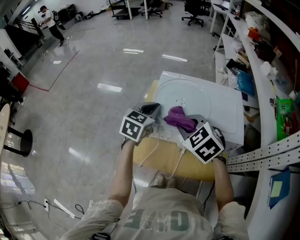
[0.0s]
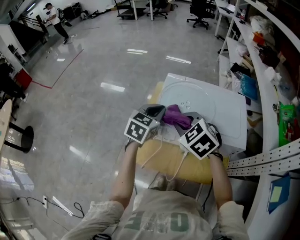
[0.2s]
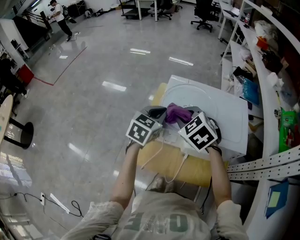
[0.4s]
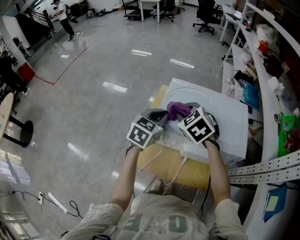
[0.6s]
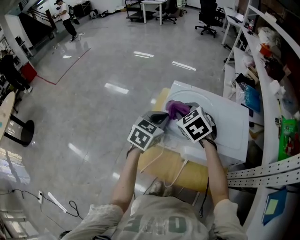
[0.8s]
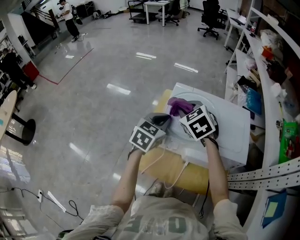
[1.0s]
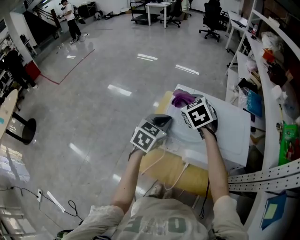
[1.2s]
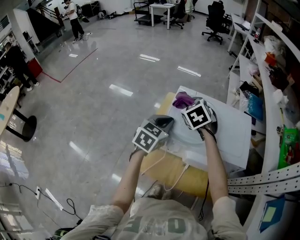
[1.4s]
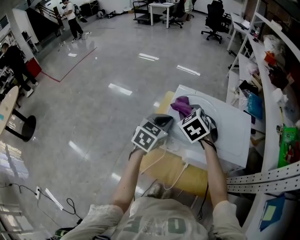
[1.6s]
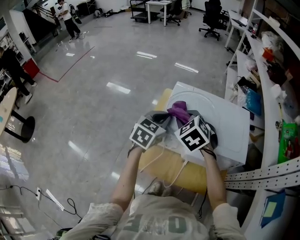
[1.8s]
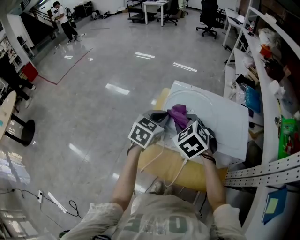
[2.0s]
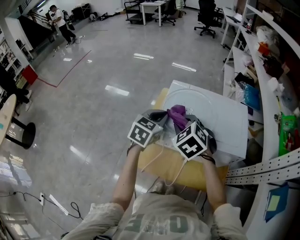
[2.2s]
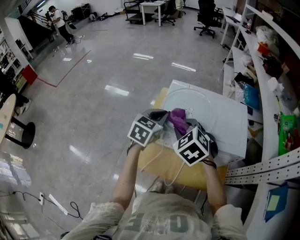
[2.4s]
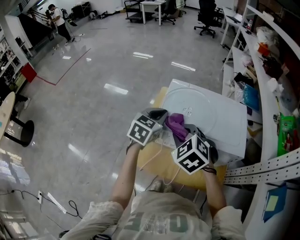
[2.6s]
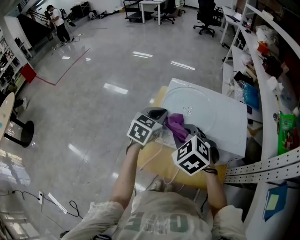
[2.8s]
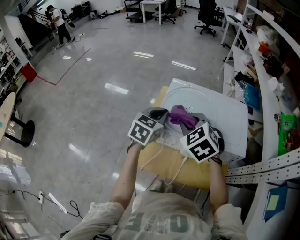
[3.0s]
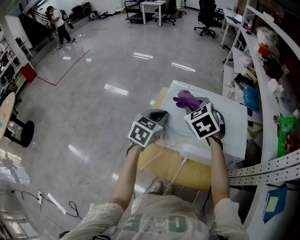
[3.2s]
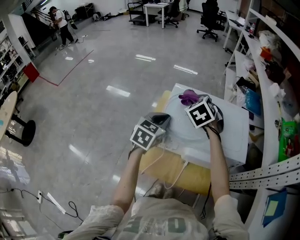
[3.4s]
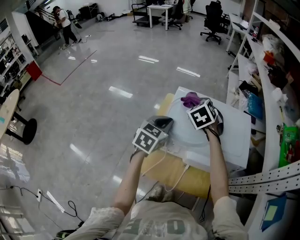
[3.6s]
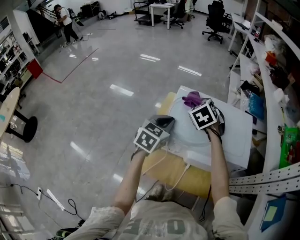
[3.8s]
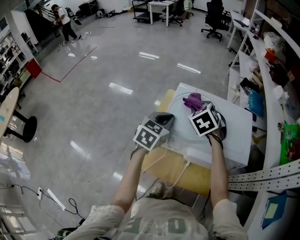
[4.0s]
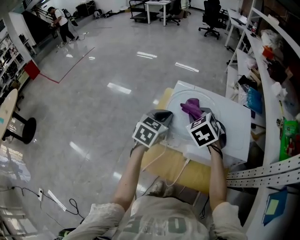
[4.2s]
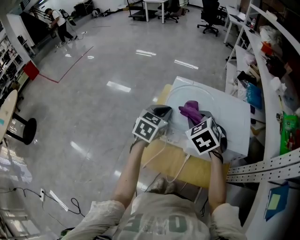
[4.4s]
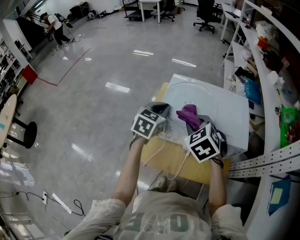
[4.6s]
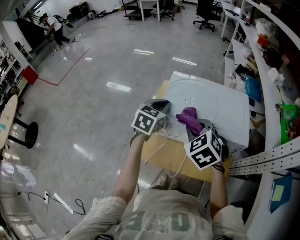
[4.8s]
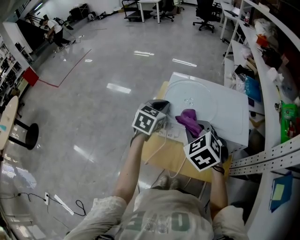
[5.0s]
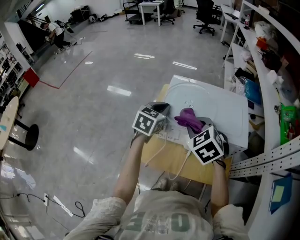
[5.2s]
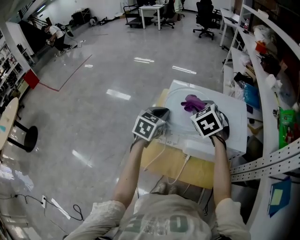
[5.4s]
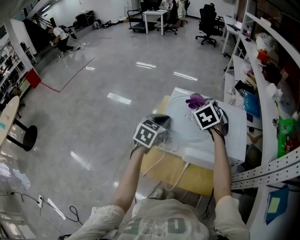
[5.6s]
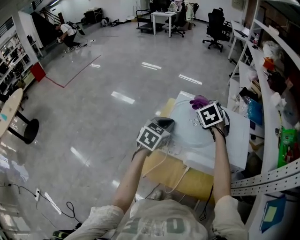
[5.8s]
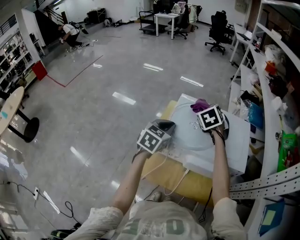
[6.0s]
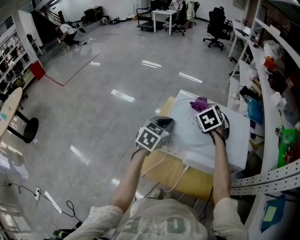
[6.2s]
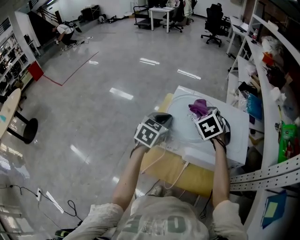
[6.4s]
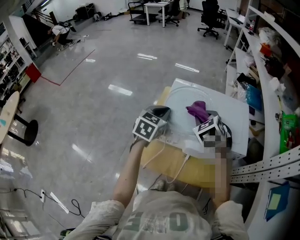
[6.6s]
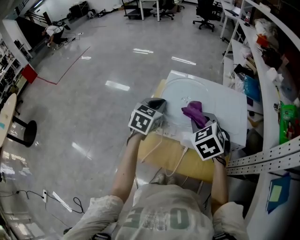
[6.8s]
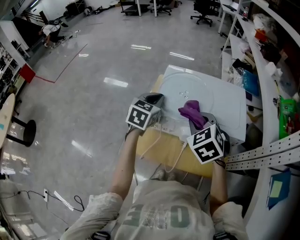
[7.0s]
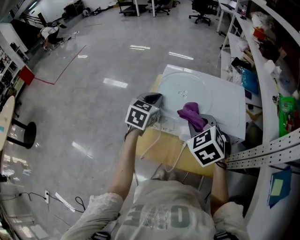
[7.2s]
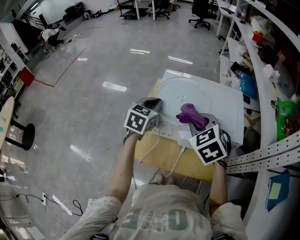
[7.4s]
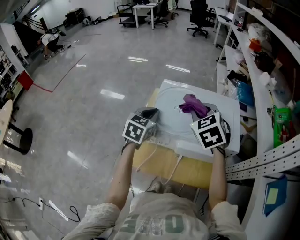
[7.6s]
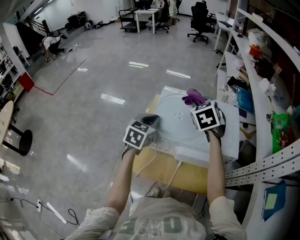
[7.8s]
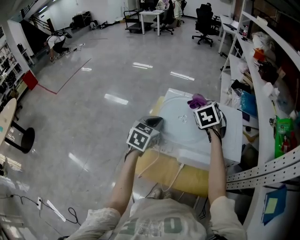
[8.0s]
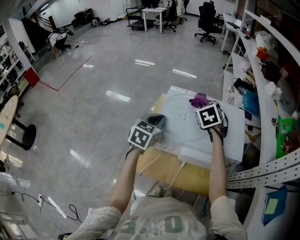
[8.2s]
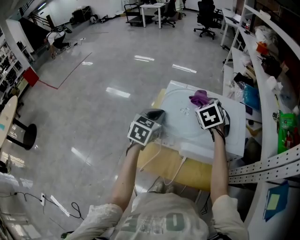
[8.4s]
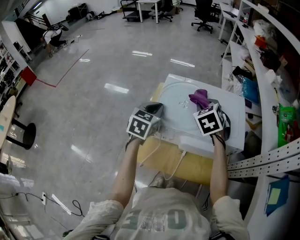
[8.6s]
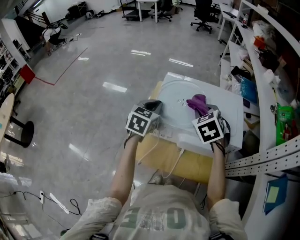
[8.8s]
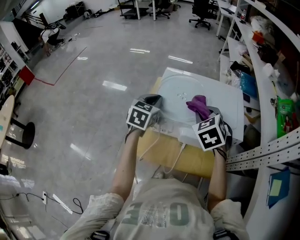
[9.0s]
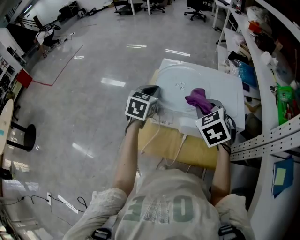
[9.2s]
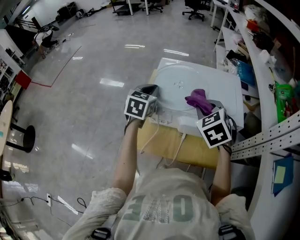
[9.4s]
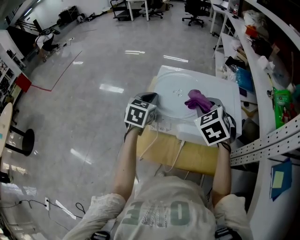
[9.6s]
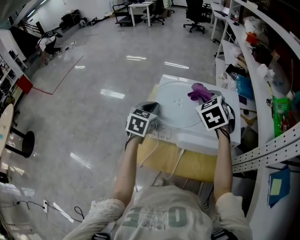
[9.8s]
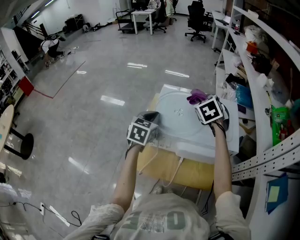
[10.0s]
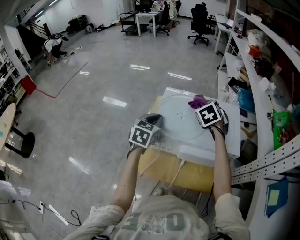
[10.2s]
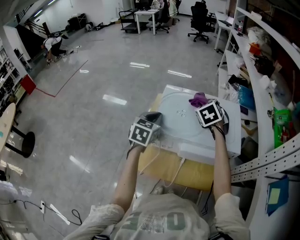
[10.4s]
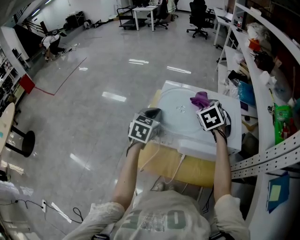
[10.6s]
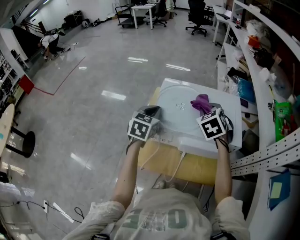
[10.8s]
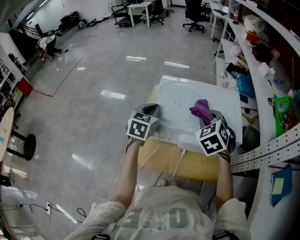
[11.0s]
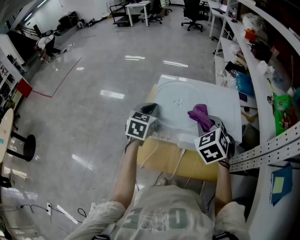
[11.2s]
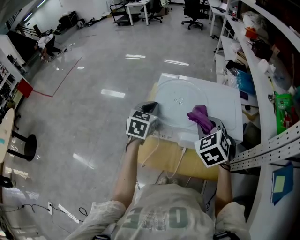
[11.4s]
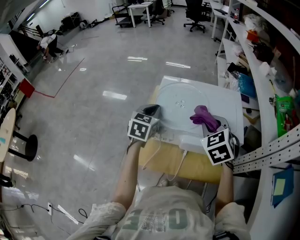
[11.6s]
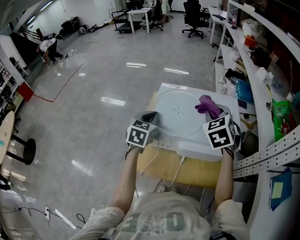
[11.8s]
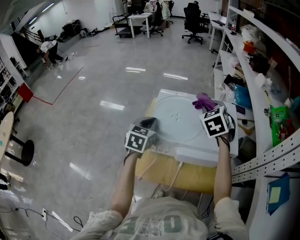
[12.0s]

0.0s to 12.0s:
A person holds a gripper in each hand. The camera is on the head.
0.0s to 1.6s: The right gripper travels forward by about 10 cm.
1.6s to 3.0s: The right gripper shifts approximately 10 cm backward.
3.0s to 4.4s: The right gripper moves approximately 15 cm forward and comes back.
4.4s to 6.0s: The right gripper heads forward, covering approximately 15 cm.
6.0s to 7.6s: The right gripper travels backward and upward by approximately 15 cm.
7.6s to 9.0s: The right gripper reaches roughly 10 cm forward, then returns.
9.0s to 10.4s: The right gripper moves forward, about 10 cm.
10.4s to 12.0s: The right gripper goes approximately 5 cm upward, and reaches about 15 cm backward, then returns.

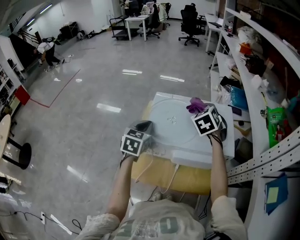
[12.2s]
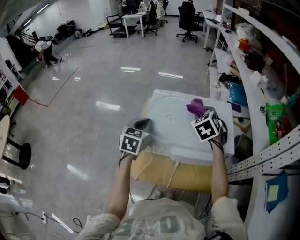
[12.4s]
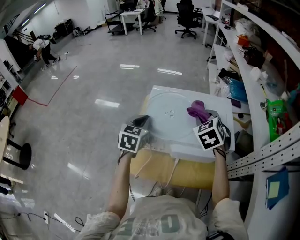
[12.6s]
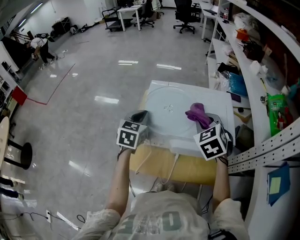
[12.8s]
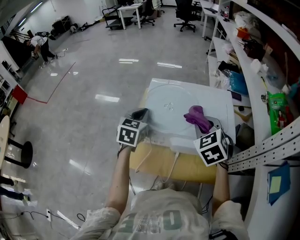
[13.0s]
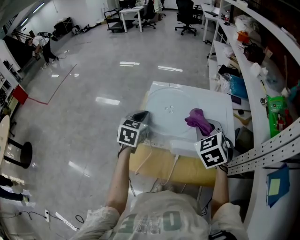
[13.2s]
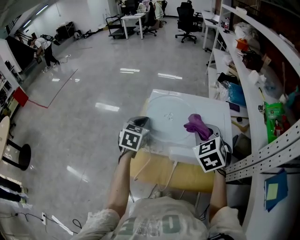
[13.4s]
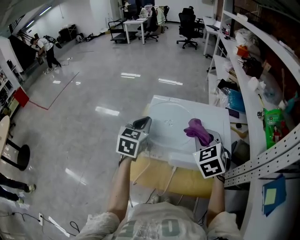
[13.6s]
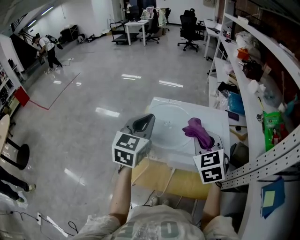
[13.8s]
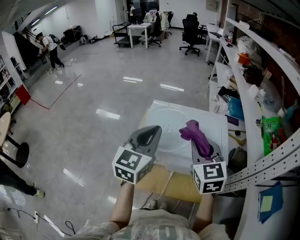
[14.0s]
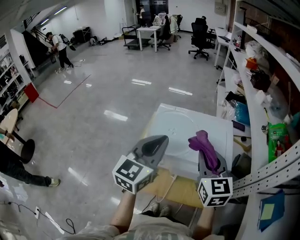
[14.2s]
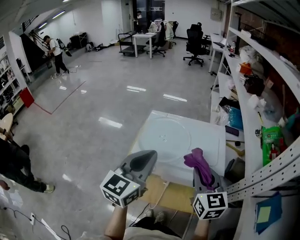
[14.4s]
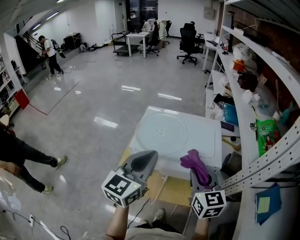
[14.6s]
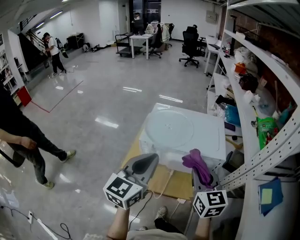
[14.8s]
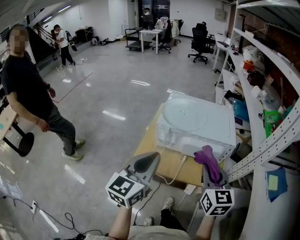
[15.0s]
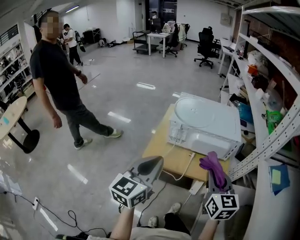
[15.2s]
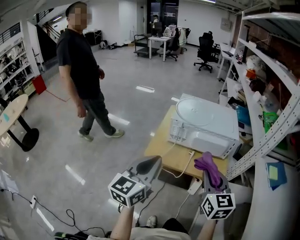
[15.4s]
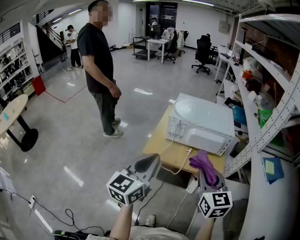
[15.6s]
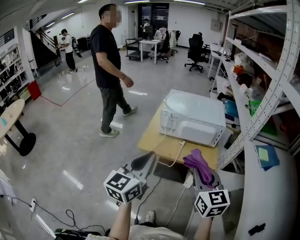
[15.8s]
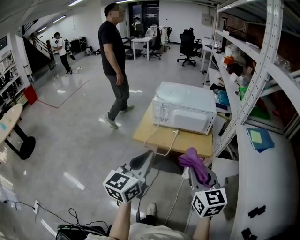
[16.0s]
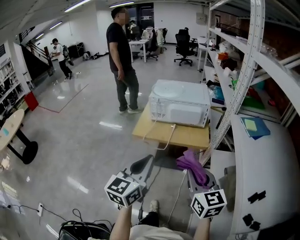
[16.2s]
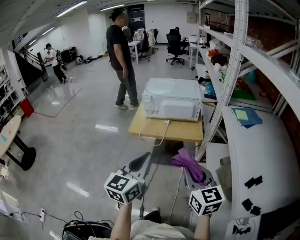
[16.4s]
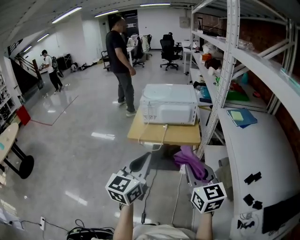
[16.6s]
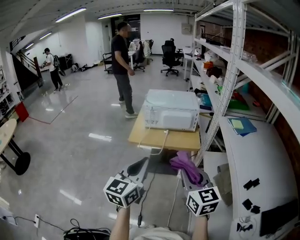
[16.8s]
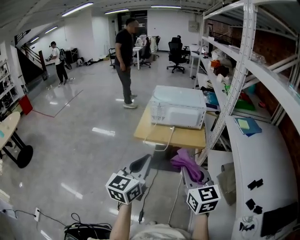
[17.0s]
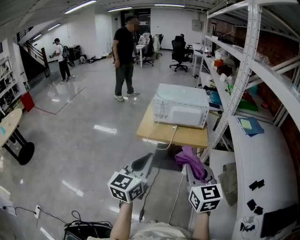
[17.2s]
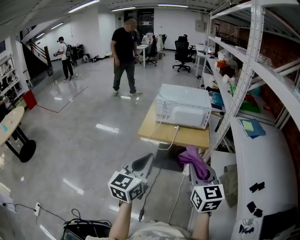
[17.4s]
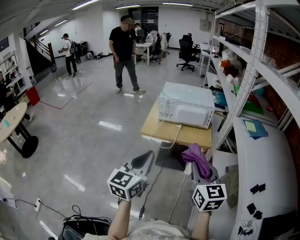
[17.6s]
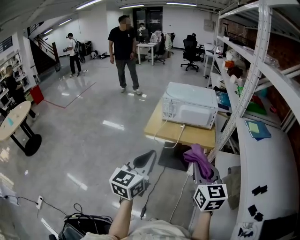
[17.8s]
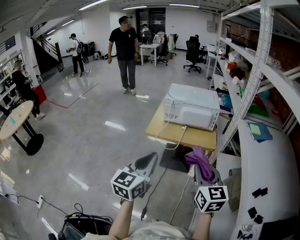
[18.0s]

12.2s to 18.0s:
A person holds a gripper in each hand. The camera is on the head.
12.2s to 13.6s: The right gripper is displaced backward by approximately 15 cm; the left gripper moves upward, about 5 cm.
13.6s to 15.0s: Both grippers travel together backward, approximately 25 cm. The left gripper changes its angle by some 20 degrees. The right gripper swivels approximately 30 degrees.
15.0s to 16.6s: Both grippers travel together backward, about 35 cm.
16.6s to 18.0s: The left gripper moves to the left, approximately 5 cm.

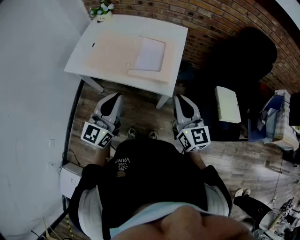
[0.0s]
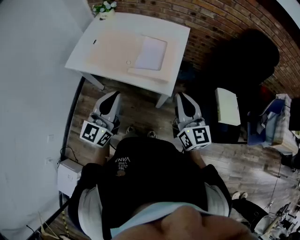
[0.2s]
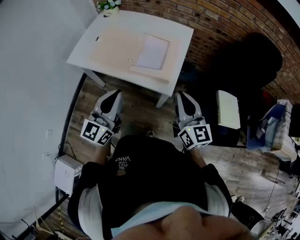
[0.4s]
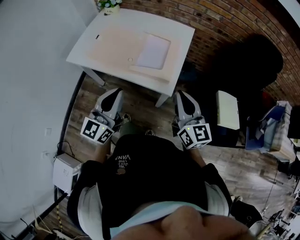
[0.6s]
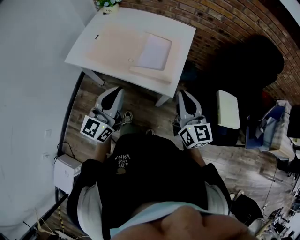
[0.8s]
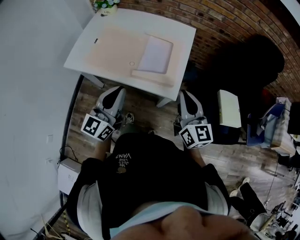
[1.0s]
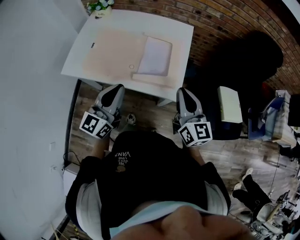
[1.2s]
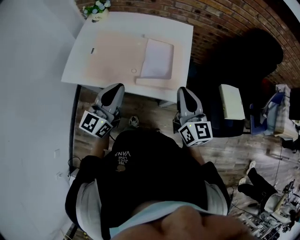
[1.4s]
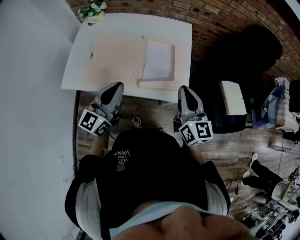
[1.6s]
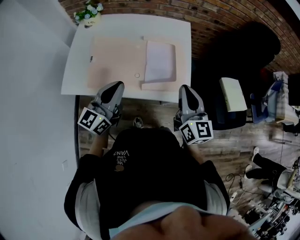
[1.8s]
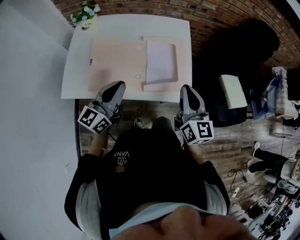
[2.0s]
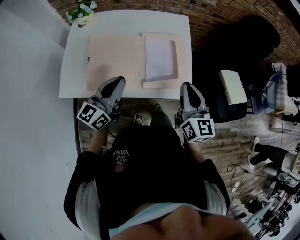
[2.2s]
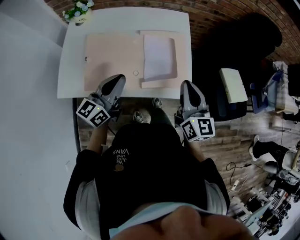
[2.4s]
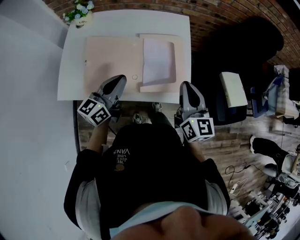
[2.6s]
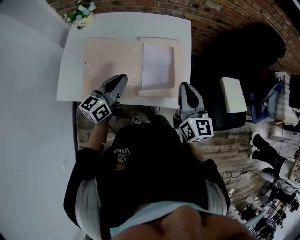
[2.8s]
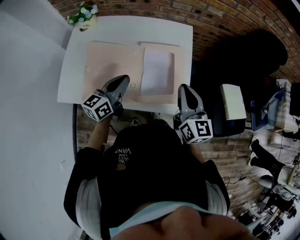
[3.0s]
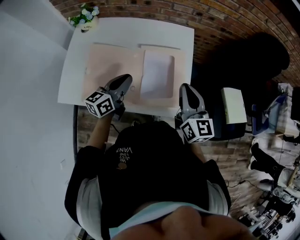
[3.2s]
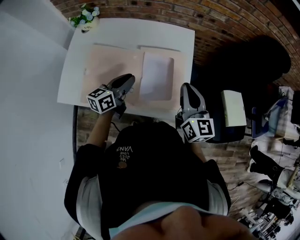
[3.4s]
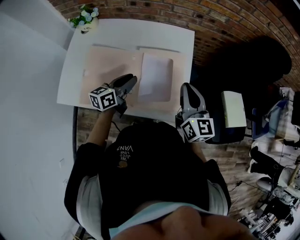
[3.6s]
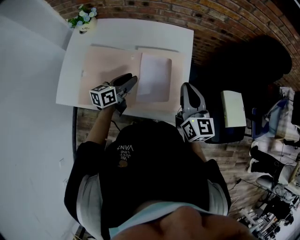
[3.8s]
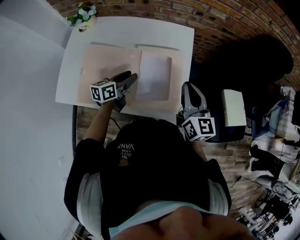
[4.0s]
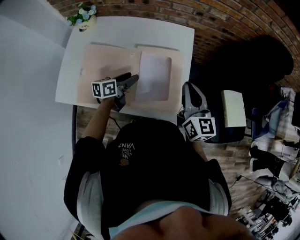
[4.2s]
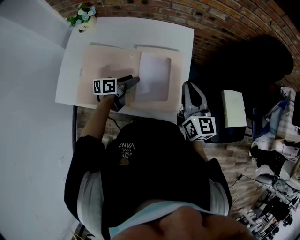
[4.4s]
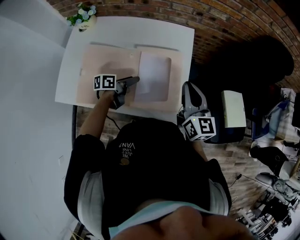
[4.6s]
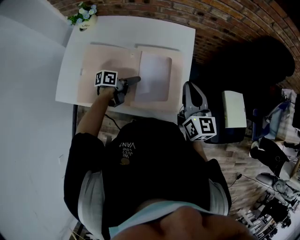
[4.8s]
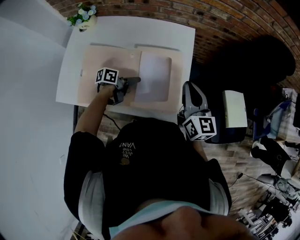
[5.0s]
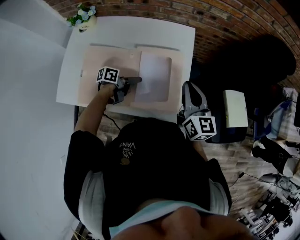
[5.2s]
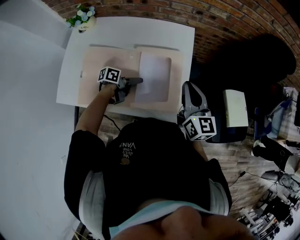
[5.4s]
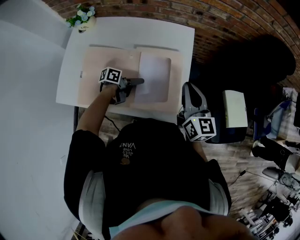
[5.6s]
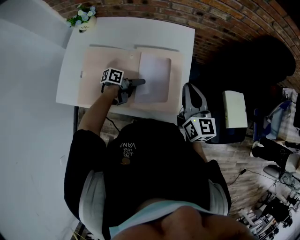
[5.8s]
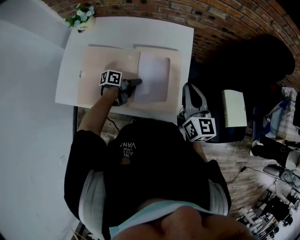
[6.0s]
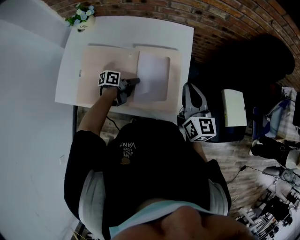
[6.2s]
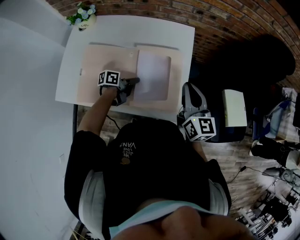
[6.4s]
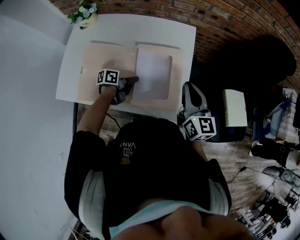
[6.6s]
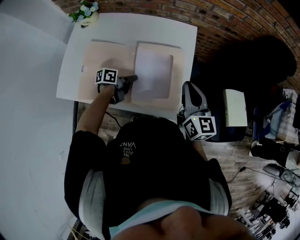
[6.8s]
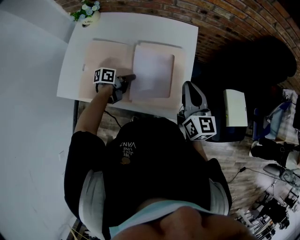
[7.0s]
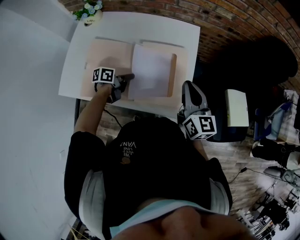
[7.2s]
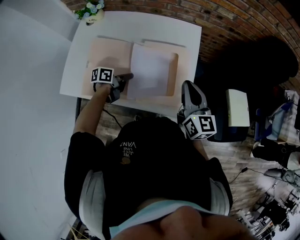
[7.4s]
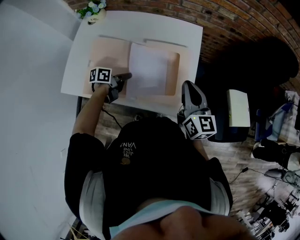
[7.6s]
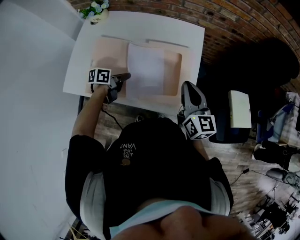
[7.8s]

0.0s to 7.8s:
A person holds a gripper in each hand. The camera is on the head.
0.0s to 1.6s: The grippers both shift forward and to the left by roughly 15 cm.
1.6s to 3.2s: The right gripper travels forward by some 10 cm; the left gripper travels forward and downward by some 20 cm, and changes its angle by some 30 degrees.
3.2s to 4.6s: The right gripper moves roughly 5 cm. Meanwhile the left gripper goes some 15 cm downward, rotates approximately 40 degrees, and opens.
4.6s to 6.2s: The left gripper closes.
6.2s to 7.8s: The right gripper moves about 5 cm. The left gripper shifts about 10 cm to the left and backward.
